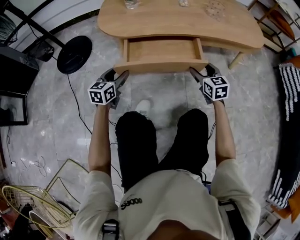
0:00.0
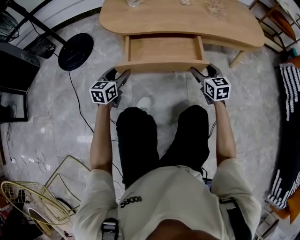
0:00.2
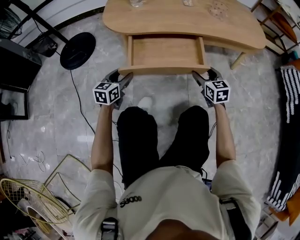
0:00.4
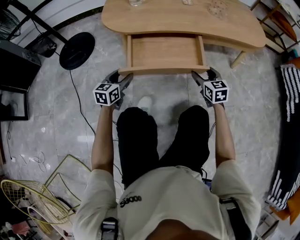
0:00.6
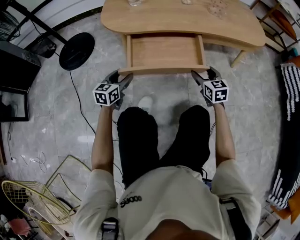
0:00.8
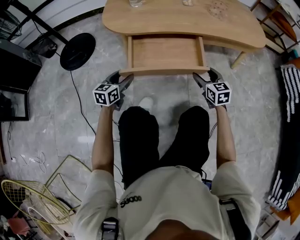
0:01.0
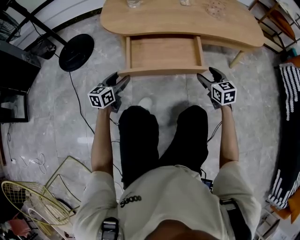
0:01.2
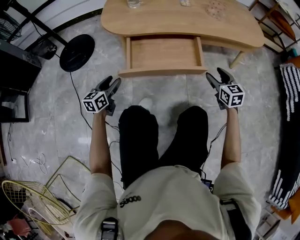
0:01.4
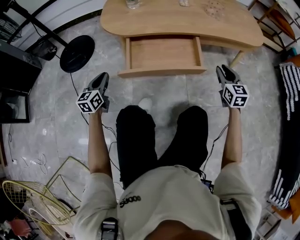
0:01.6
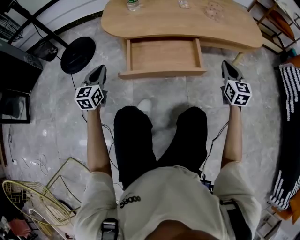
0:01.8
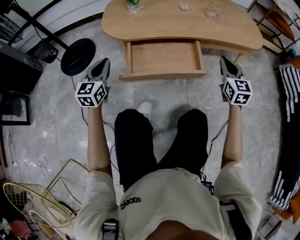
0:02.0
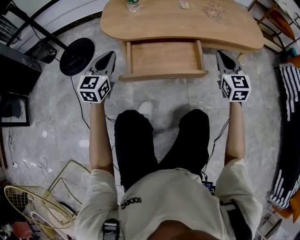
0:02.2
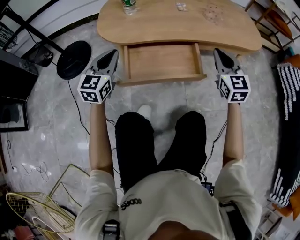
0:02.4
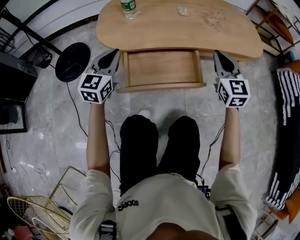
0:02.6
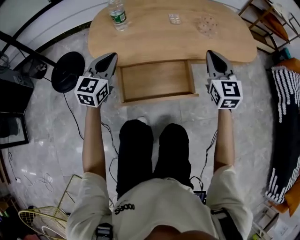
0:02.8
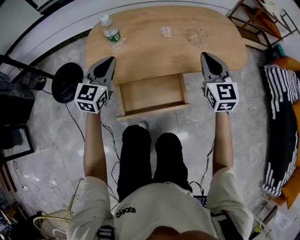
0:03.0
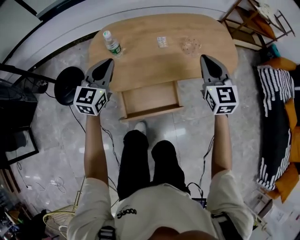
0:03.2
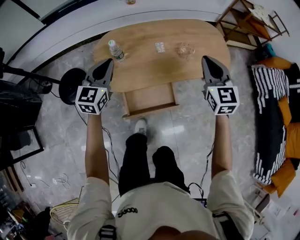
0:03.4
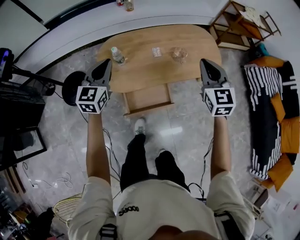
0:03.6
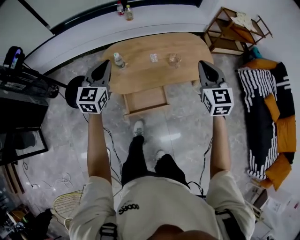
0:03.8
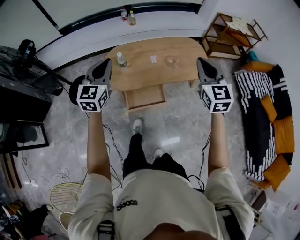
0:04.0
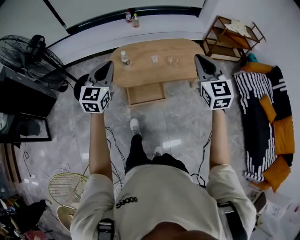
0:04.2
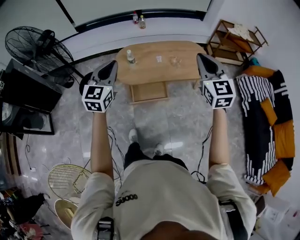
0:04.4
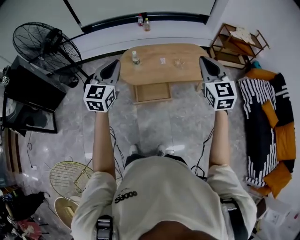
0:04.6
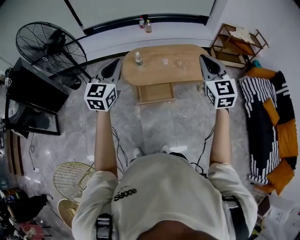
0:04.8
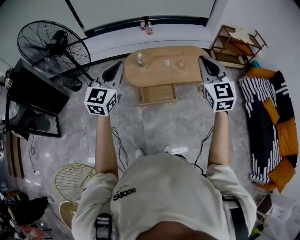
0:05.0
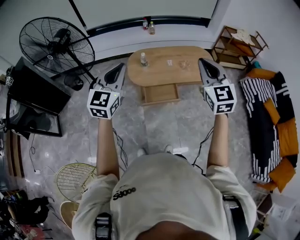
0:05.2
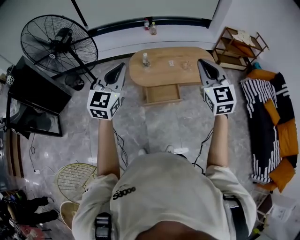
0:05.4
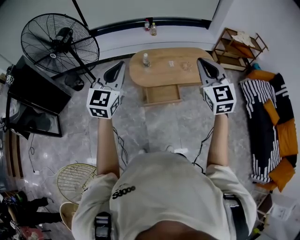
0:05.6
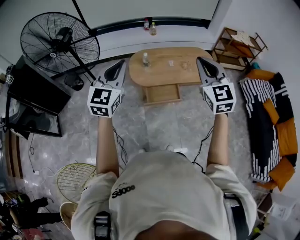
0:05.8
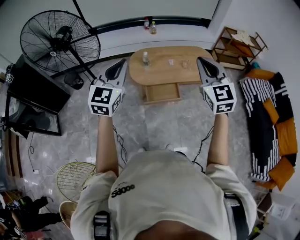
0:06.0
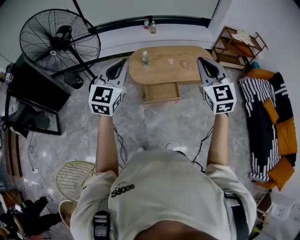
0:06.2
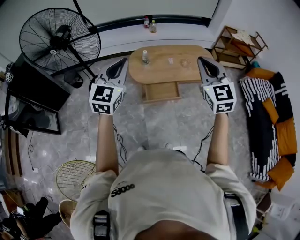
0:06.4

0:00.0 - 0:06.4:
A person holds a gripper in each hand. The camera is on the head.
0:00.0 - 0:01.6: The right gripper travels to the right by some 10 cm, and closes. The left gripper shifts roughly 10 cm to the left, and closes.
0:01.6 - 0:03.2: The grippers both shift upward and forward by some 40 cm. The left gripper turns by roughly 30 degrees, while the right gripper closes up.
0:03.2 - 0:04.8: Both grippers travel together upward and backward, approximately 60 cm.
0:04.8 - 0:06.4: The left gripper travels backward by roughly 5 cm, while the right gripper shifts approximately 10 cm to the left and backward.

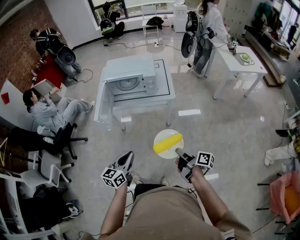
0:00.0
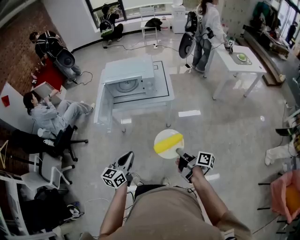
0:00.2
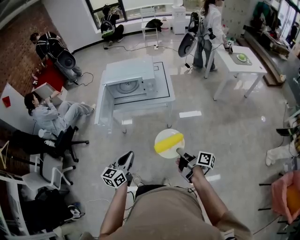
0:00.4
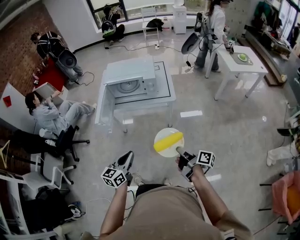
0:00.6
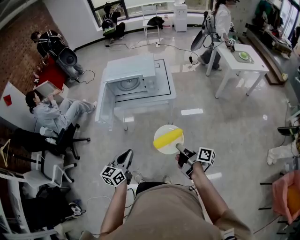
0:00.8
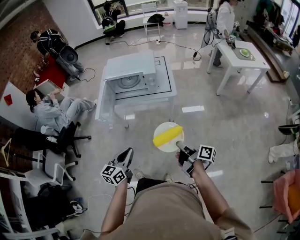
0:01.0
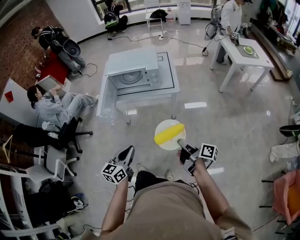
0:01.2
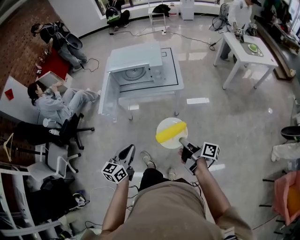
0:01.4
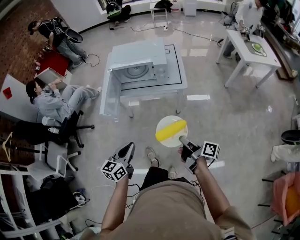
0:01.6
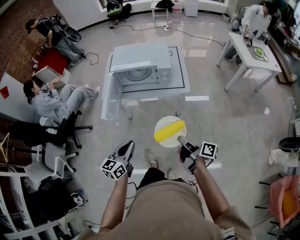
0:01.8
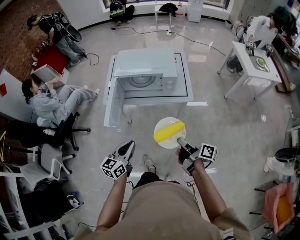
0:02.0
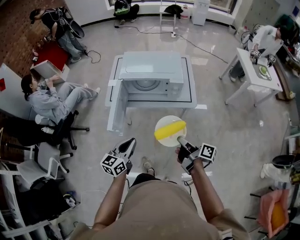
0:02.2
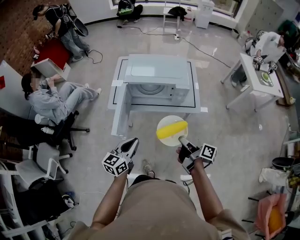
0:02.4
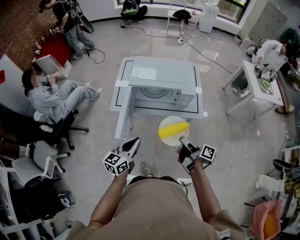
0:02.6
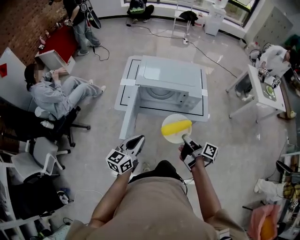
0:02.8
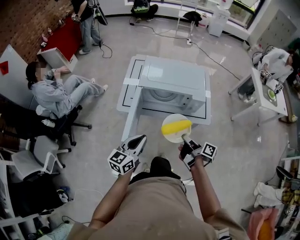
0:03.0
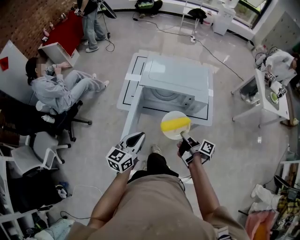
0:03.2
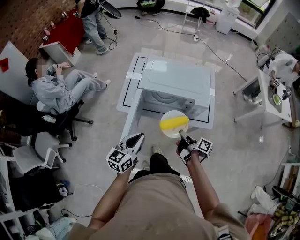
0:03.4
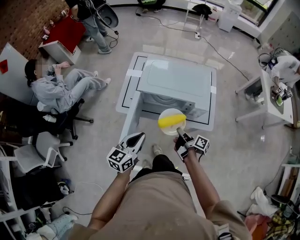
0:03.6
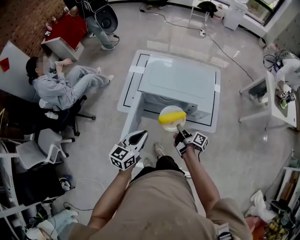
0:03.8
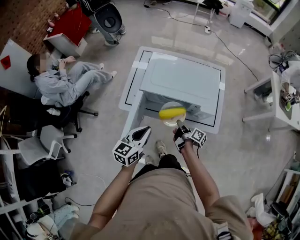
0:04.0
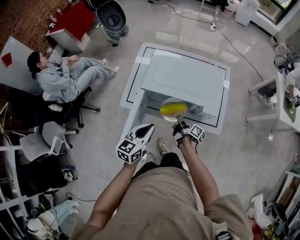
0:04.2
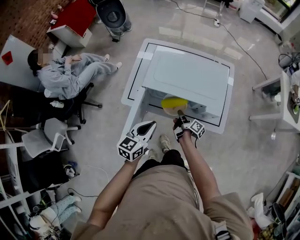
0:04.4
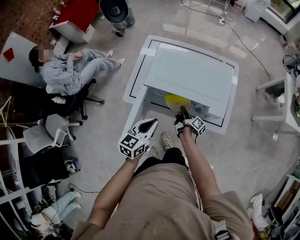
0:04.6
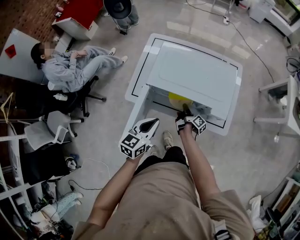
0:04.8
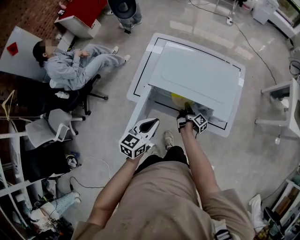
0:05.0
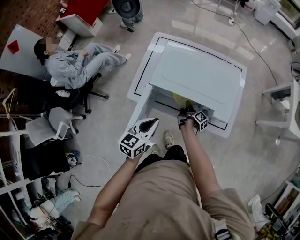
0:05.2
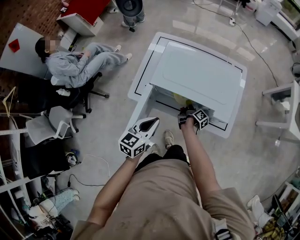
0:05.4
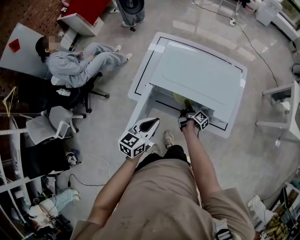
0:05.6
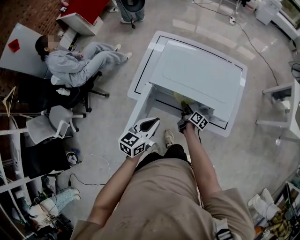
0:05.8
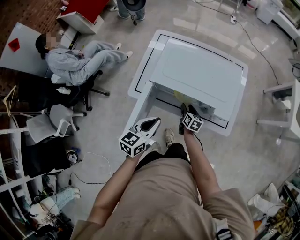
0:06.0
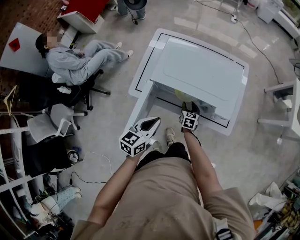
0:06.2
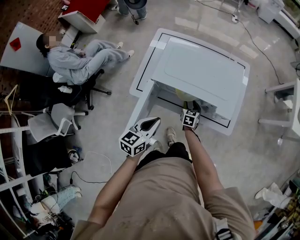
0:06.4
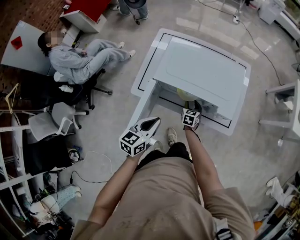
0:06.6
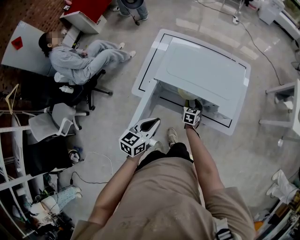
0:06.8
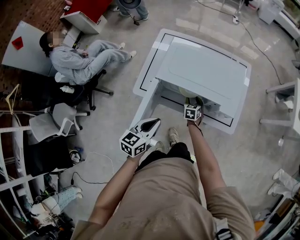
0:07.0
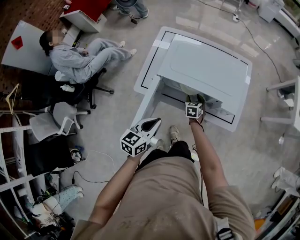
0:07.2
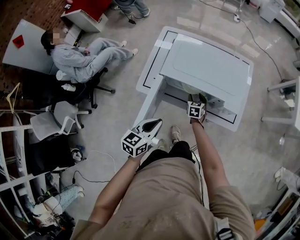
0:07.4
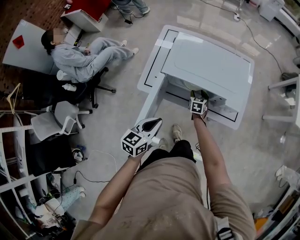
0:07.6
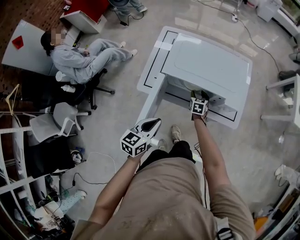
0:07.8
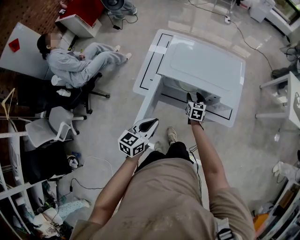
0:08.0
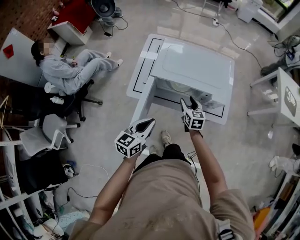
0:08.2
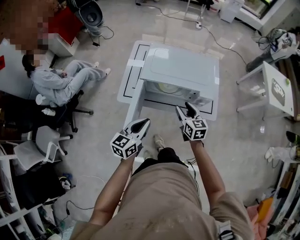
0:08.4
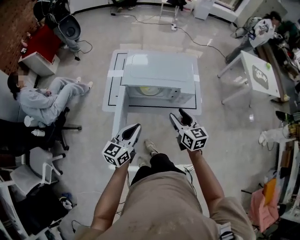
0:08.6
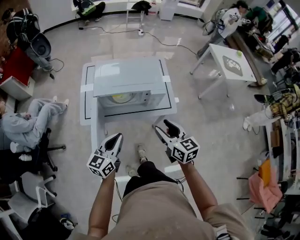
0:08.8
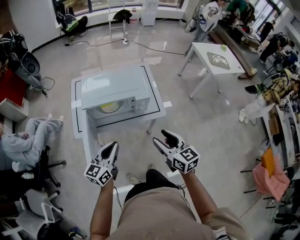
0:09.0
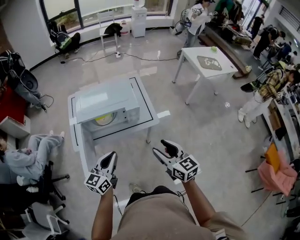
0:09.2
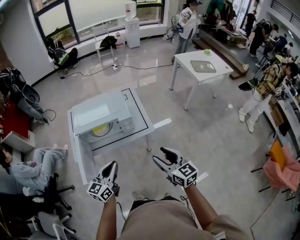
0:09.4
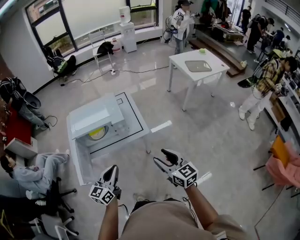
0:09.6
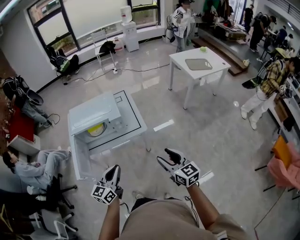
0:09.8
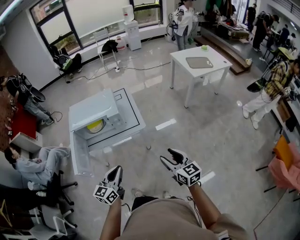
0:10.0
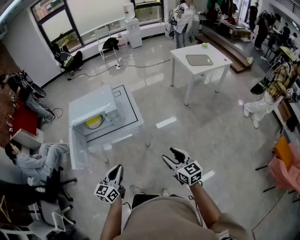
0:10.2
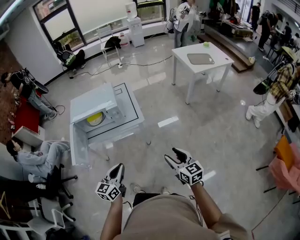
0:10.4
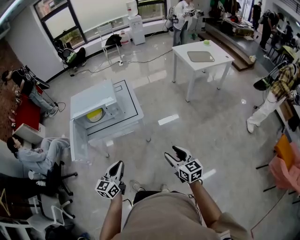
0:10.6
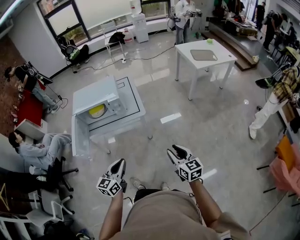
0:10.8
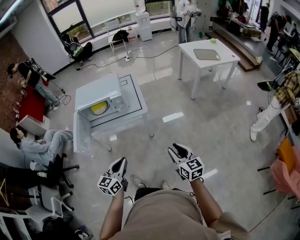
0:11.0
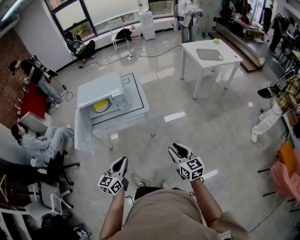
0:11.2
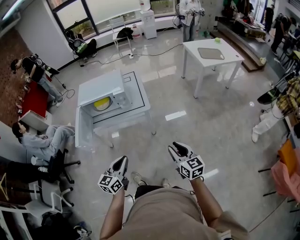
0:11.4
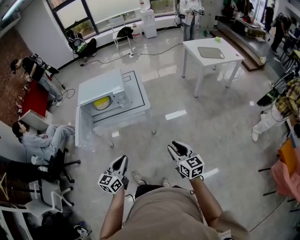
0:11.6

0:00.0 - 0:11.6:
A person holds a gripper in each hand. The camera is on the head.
0:00.0 - 0:01.4: There are only small adjustments of the grippers.
0:01.4 - 0:02.8: Both grippers move forward and to the left, roughly 30 cm.
0:02.8 - 0:04.4: The right gripper travels forward and downward by some 35 cm, while the left gripper shifts about 20 cm forward.
0:04.4 - 0:05.8: The right gripper ends up some 5 cm from where it was, and opens its fingers.
0:05.8 - 0:07.2: The right gripper rotates around the line of its fingers by roughly 60 degrees, counterclockwise from behind.
0:07.2 - 0:08.8: The left gripper travels upward and backward by some 10 cm, and swivels roughly 20 degrees. The right gripper goes about 40 cm upward and backward, and swivels some 30 degrees.
0:08.8 - 0:10.2: The two grippers go roughly 40 cm to the right and backward.
0:10.2 - 0:11.6: The two grippers go roughly 5 cm backward. The right gripper closes up.

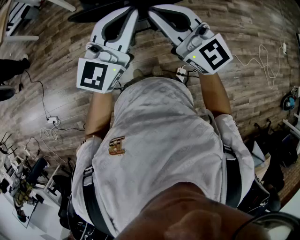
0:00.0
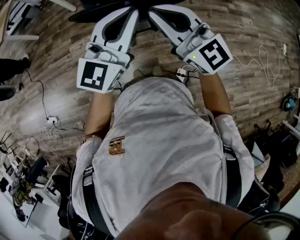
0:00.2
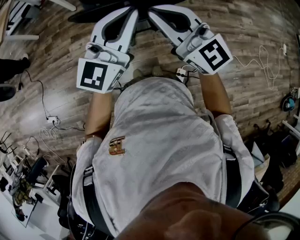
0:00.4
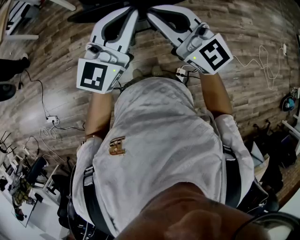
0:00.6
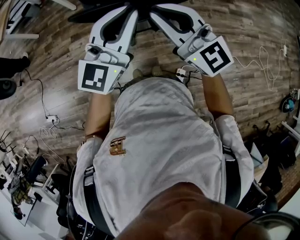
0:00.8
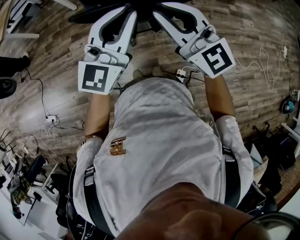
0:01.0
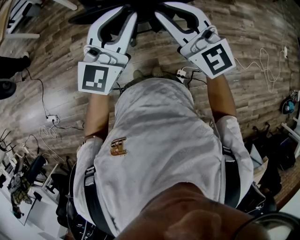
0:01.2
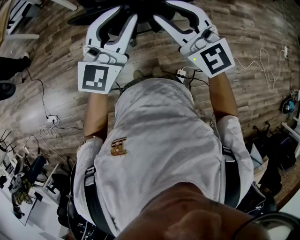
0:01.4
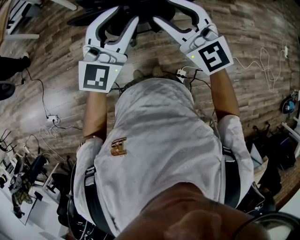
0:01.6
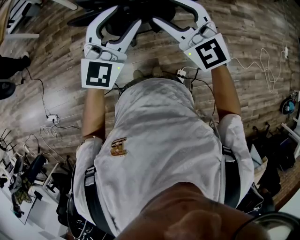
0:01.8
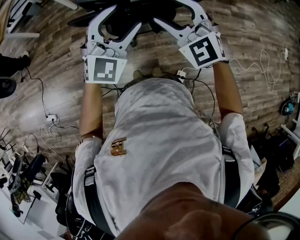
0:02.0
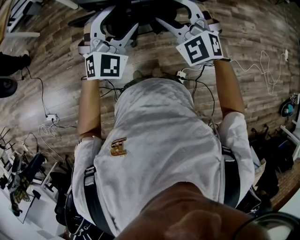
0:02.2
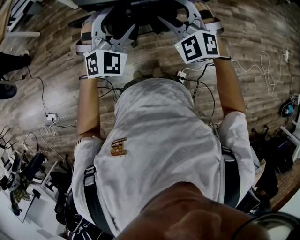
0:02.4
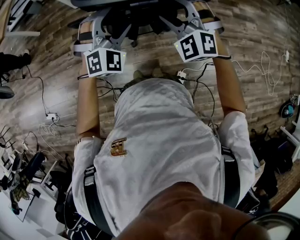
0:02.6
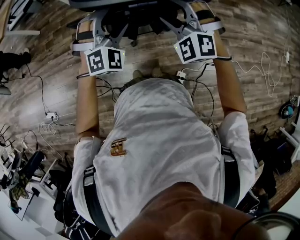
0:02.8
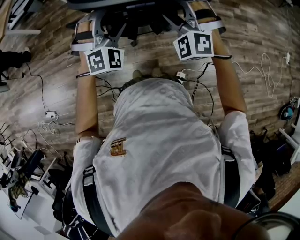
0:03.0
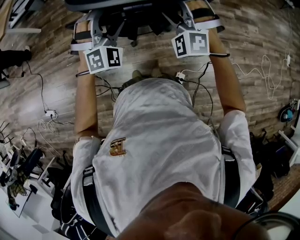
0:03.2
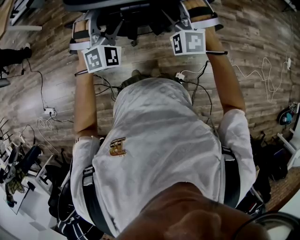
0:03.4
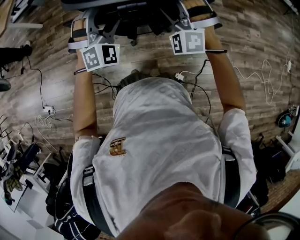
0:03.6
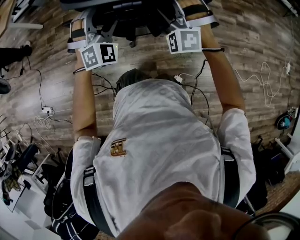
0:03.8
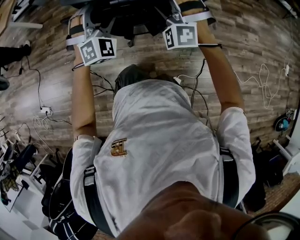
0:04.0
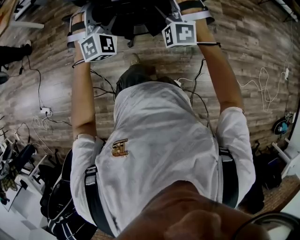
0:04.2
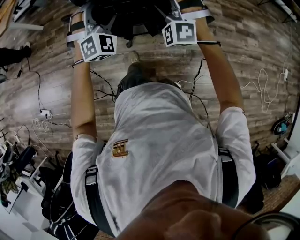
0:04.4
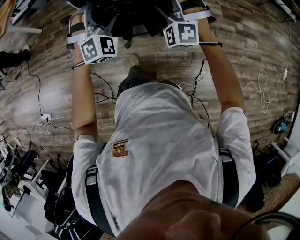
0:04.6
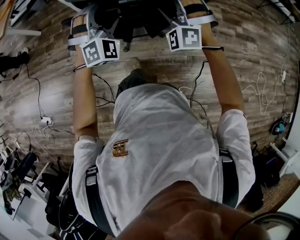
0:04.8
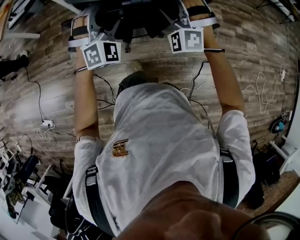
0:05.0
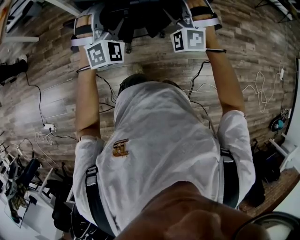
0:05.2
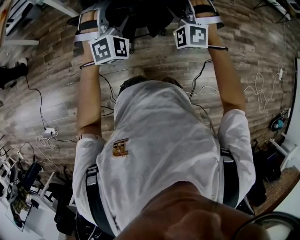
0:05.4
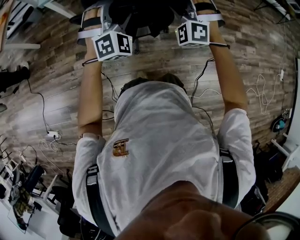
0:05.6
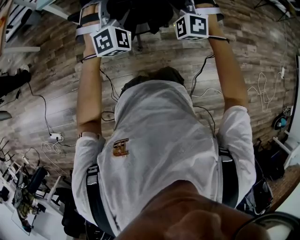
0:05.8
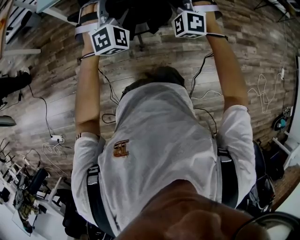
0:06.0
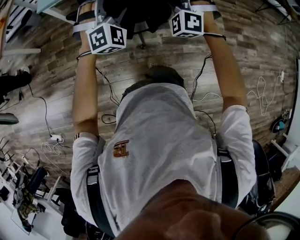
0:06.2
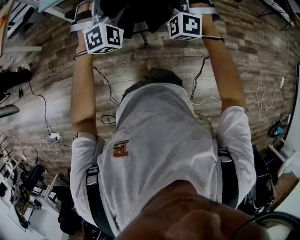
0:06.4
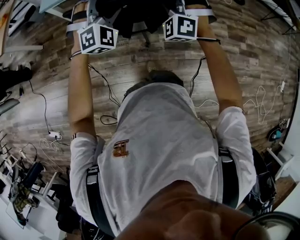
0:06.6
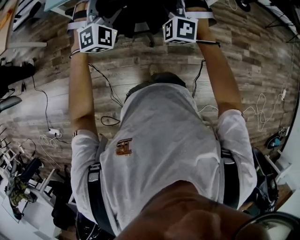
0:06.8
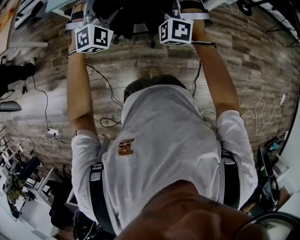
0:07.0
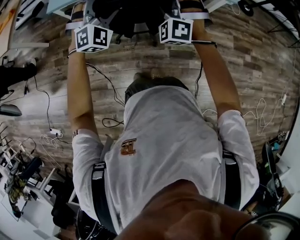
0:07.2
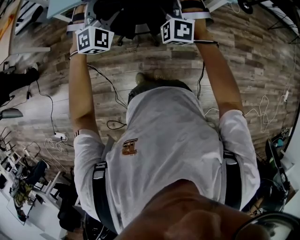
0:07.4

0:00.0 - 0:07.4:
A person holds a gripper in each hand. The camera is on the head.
0:00.0 - 0:01.4: There are only small adjustments of the grippers.
0:01.4 - 0:03.0: The grippers both shift downward and forward by some 15 cm. The right gripper swivels roughly 60 degrees, and opens its fingers; the left gripper twists some 50 degrees clockwise, seen from behind, and opens up.
0:03.0 - 0:04.4: The two grippers go approximately 10 cm forward.
0:04.4 - 0:06.0: The two grippers go approximately 35 cm forward.
0:06.0 - 0:07.4: The right gripper heads forward and to the left, covering about 20 cm, while the left gripper is displaced forward by about 20 cm.
